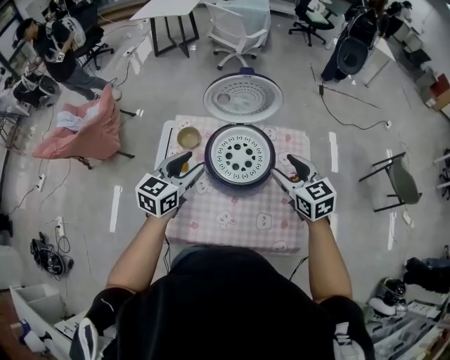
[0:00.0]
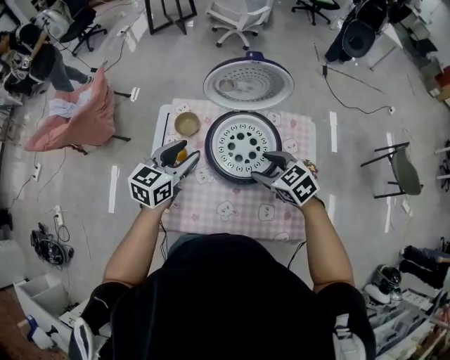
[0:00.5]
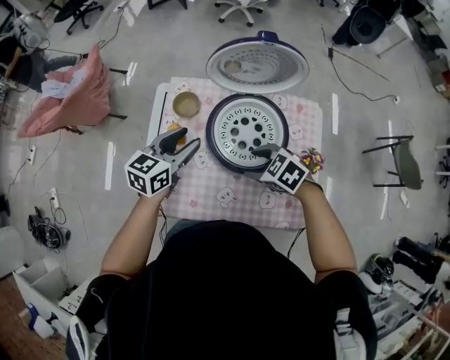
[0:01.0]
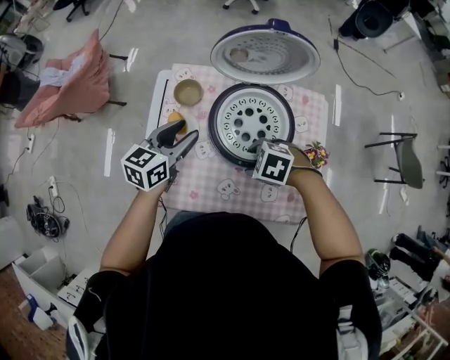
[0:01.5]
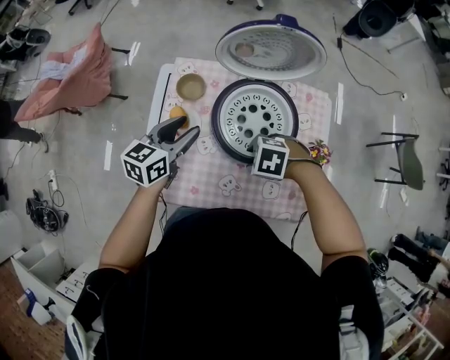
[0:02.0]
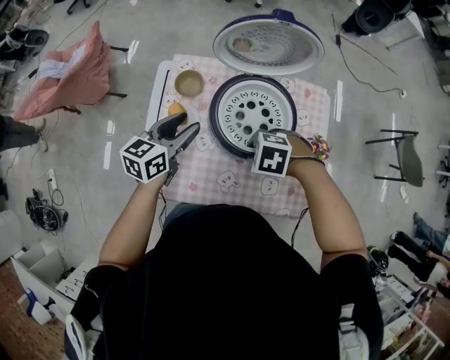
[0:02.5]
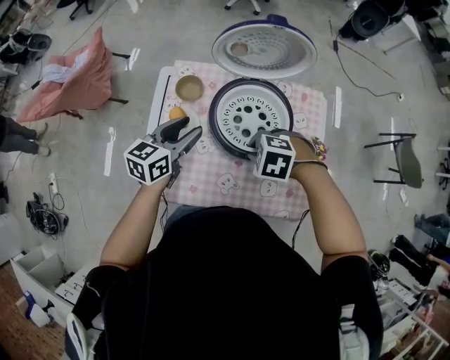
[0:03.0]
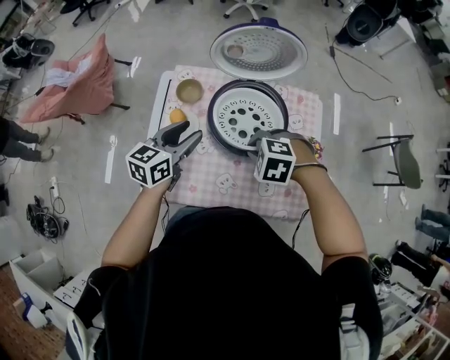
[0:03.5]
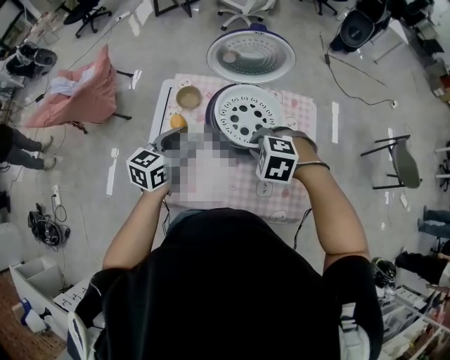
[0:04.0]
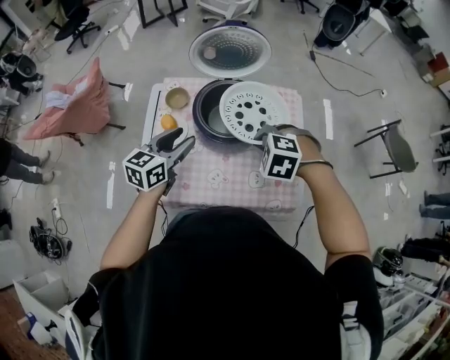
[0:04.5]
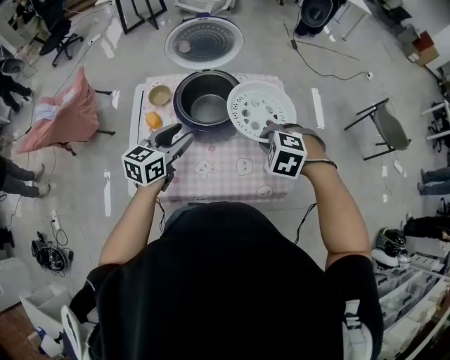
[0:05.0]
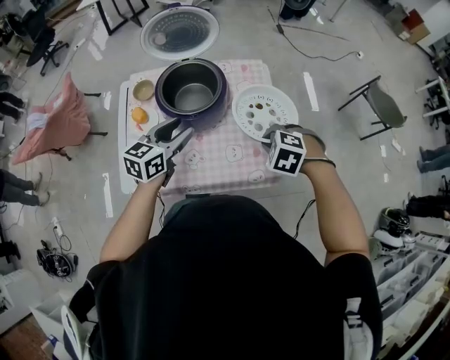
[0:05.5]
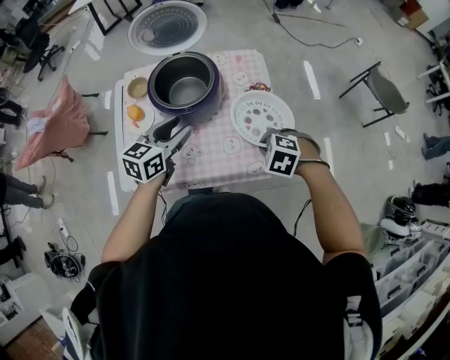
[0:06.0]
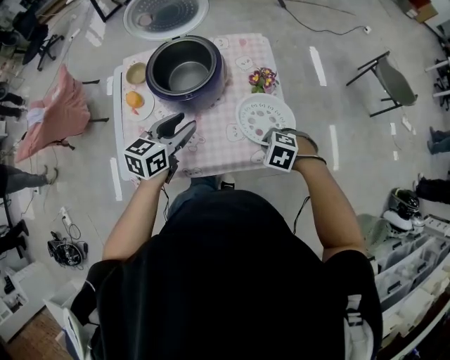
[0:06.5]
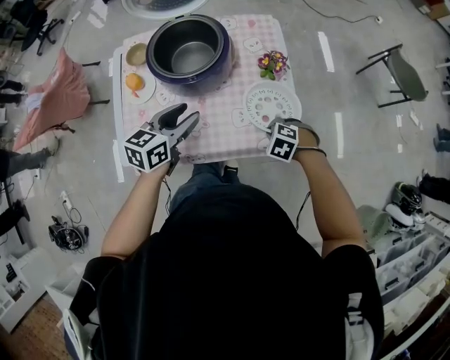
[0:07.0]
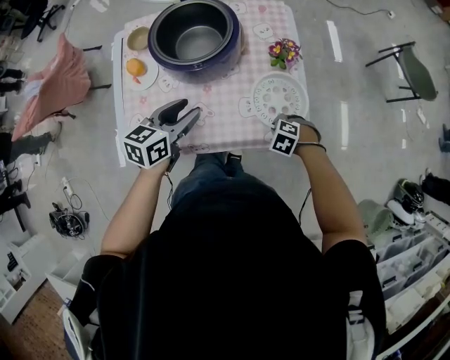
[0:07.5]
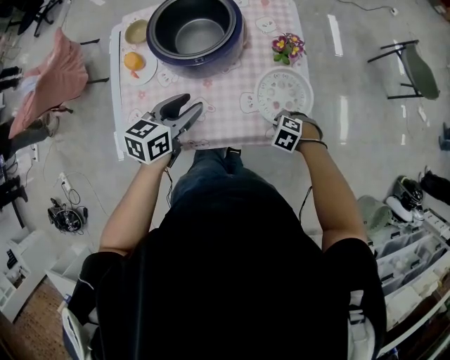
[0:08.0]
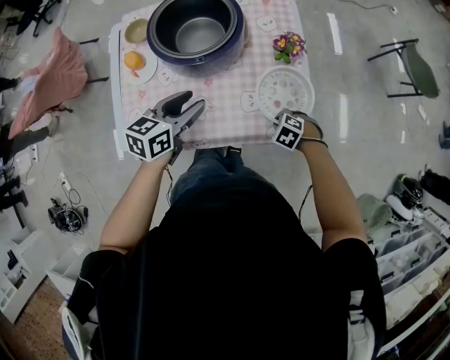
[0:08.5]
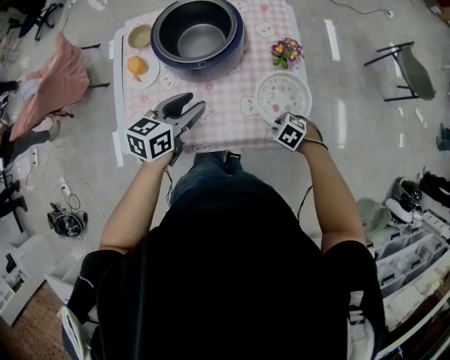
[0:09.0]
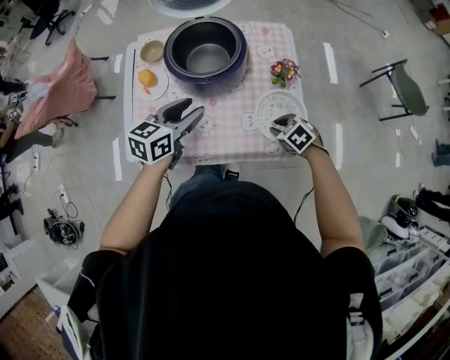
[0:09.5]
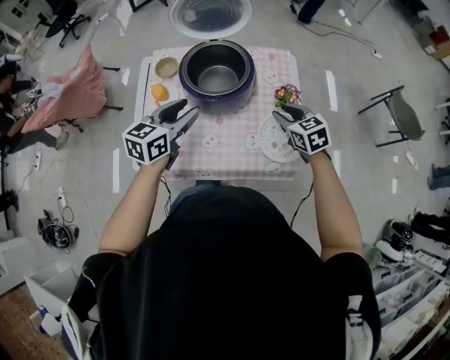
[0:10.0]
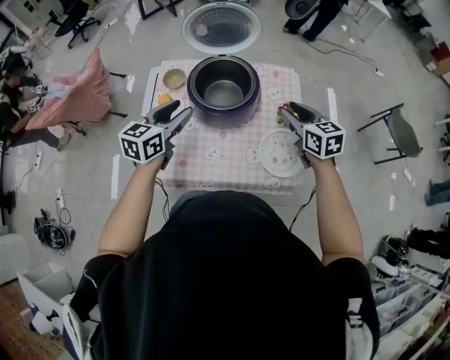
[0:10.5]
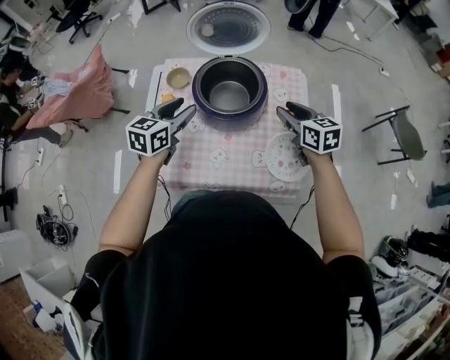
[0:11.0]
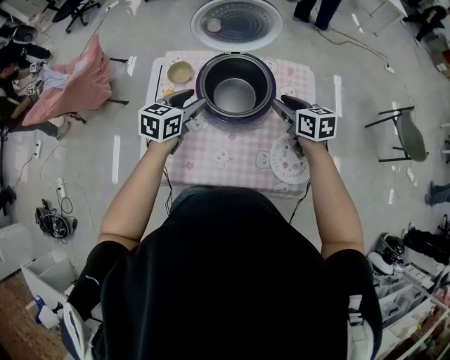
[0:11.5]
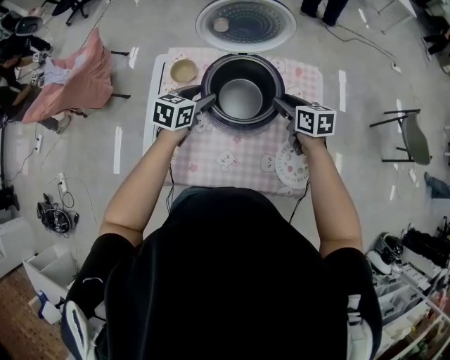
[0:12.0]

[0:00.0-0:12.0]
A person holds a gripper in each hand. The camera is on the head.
0:00.0 to 0:02.0: The right gripper goes about 20 cm downward, and tips its fingers downward by about 40 degrees. The left gripper moves downward, approximately 10 cm.
0:02.0 to 0:04.0: The left gripper shifts by some 10 cm, while the right gripper is displaced upward by approximately 10 cm, turns by about 30 degrees, and closes its fingers.
0:04.0 to 0:06.0: The right gripper moves about 30 cm, and rotates some 20 degrees, while the left gripper ends up approximately 20 cm from where it was.
0:06.0 to 0:08.0: The left gripper goes about 10 cm downward; the right gripper goes approximately 25 cm downward.
0:08.0 to 0:10.0: The left gripper travels upward by approximately 15 cm, while the right gripper shifts approximately 25 cm upward, and tilts its fingers roughly 40 degrees upward.
0:10.0 to 0:12.0: The left gripper heads forward and downward, covering about 20 cm. The right gripper moves forward and to the left, about 20 cm, and changes its angle by about 20 degrees.

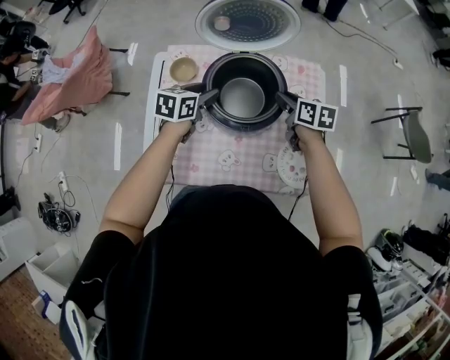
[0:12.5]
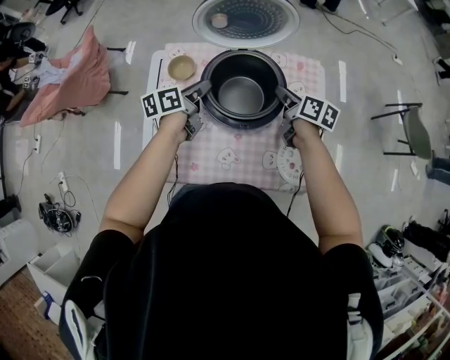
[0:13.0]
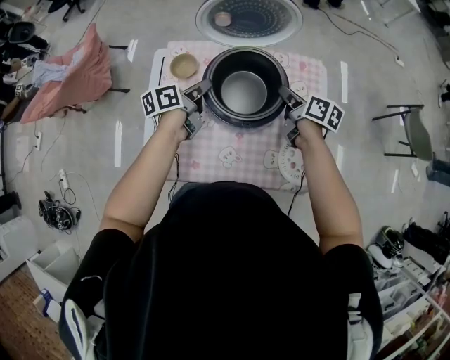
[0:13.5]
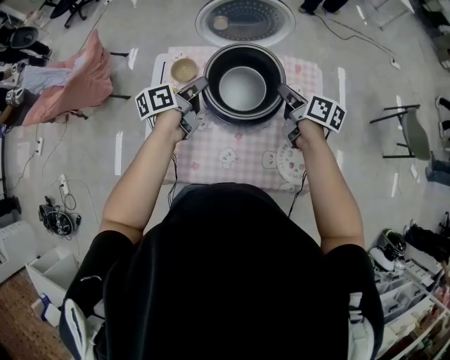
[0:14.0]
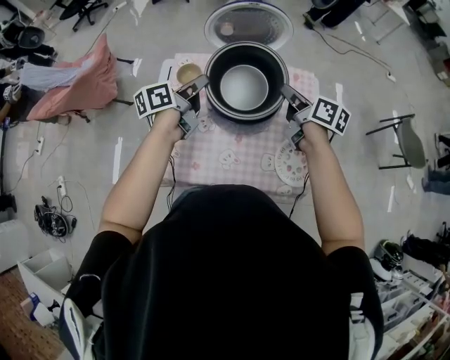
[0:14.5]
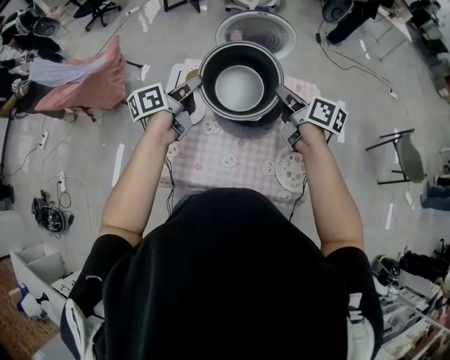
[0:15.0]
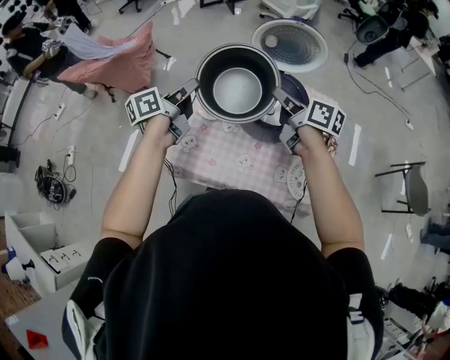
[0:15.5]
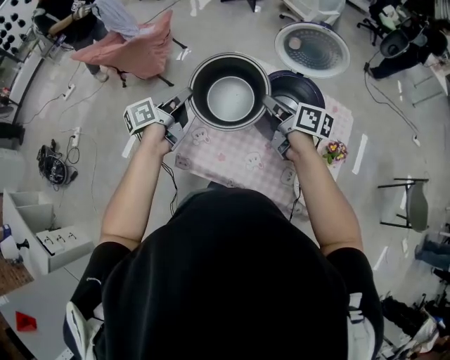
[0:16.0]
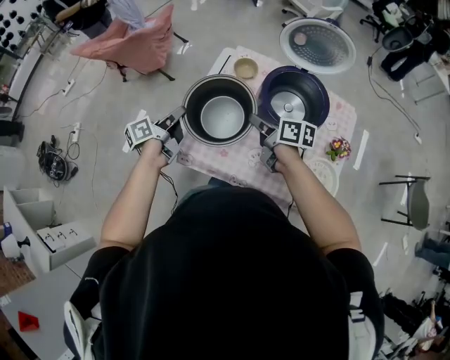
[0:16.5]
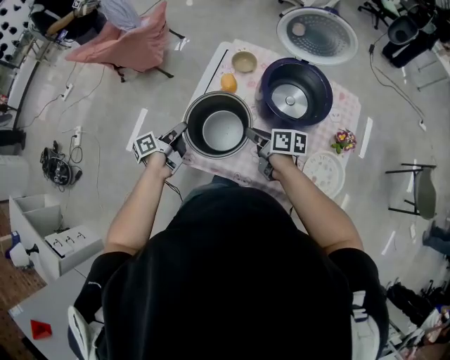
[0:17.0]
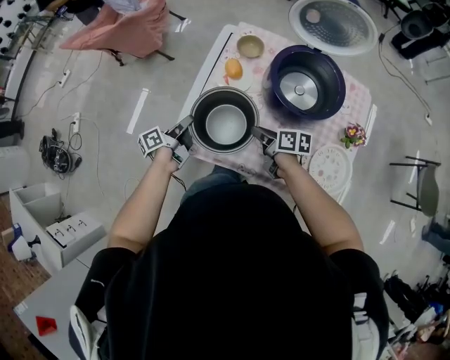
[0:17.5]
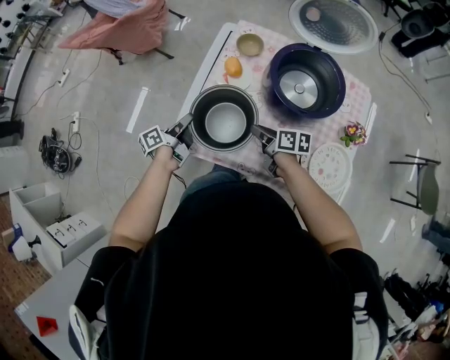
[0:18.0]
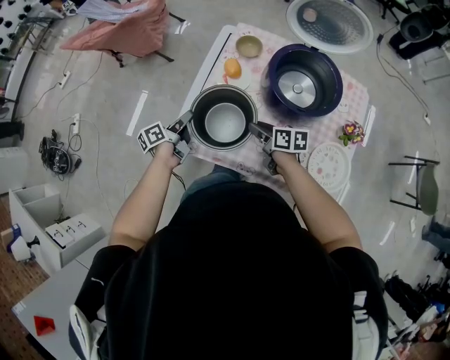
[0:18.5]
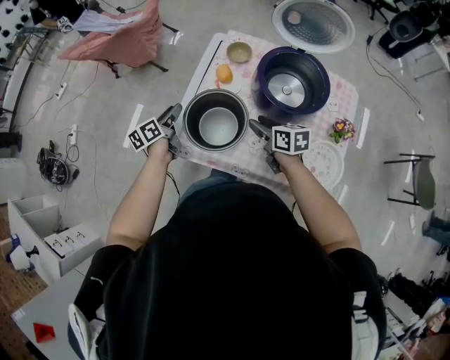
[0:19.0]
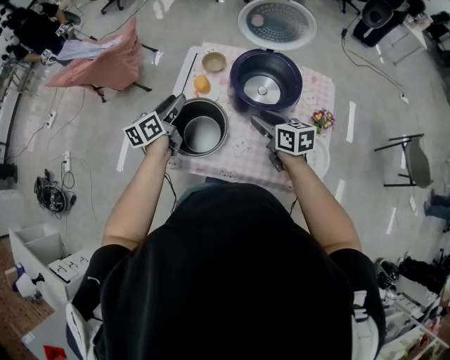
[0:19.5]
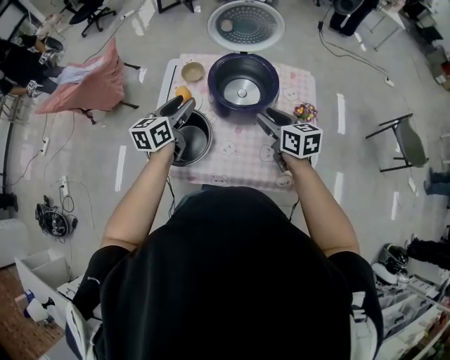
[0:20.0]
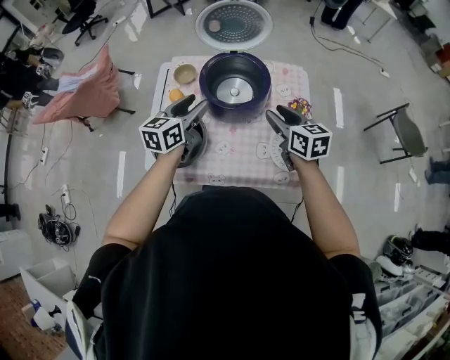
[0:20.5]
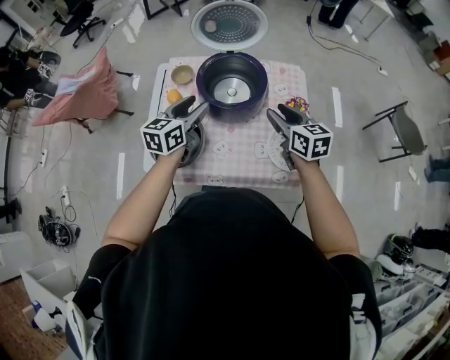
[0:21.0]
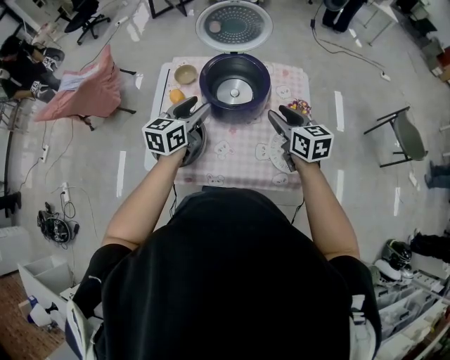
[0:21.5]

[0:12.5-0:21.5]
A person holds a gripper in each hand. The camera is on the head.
0:12.5 to 0:14.5: Both grippers travel together upward, some 10 cm. The right gripper rotates about 20 degrees, while the left gripper turns by some 40 degrees, and closes up.
0:14.5 to 0:17.0: The left gripper changes place by some 35 cm, and changes its angle by about 30 degrees. The right gripper moves about 30 cm, and swivels approximately 30 degrees.
0:17.0 to 0:19.5: The right gripper moves to the right and upward, roughly 15 cm, swivels some 30 degrees, and opens its fingers, while the left gripper is displaced upward and to the right by roughly 15 cm, changes its angle by about 40 degrees, and opens up.
0:19.5 to 0:21.5: The right gripper shifts approximately 15 cm to the right and upward; the left gripper travels to the right by approximately 20 cm, and turns by about 30 degrees.

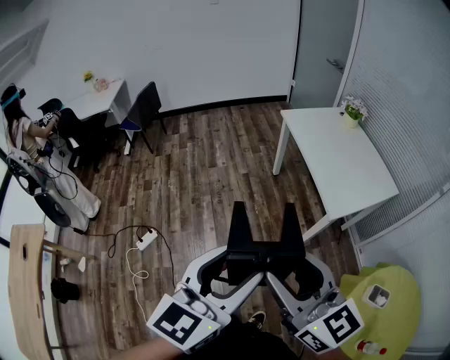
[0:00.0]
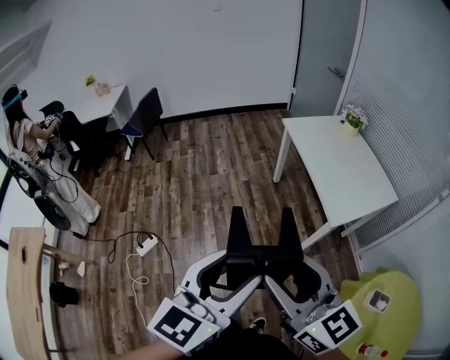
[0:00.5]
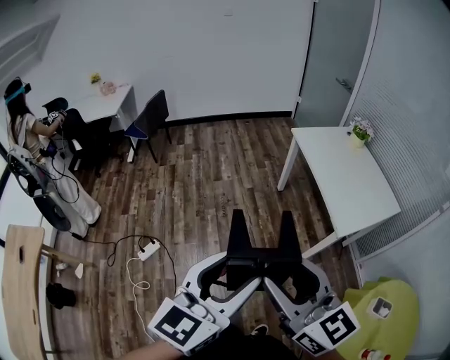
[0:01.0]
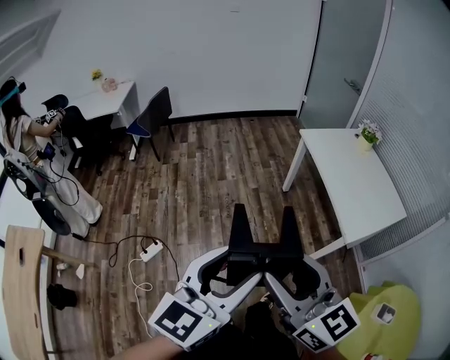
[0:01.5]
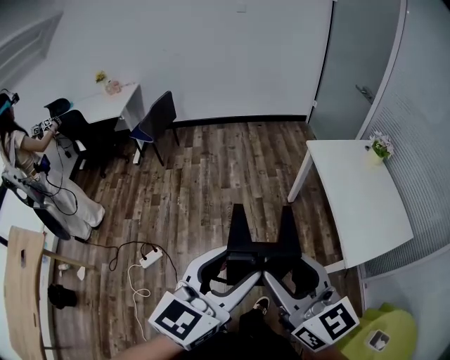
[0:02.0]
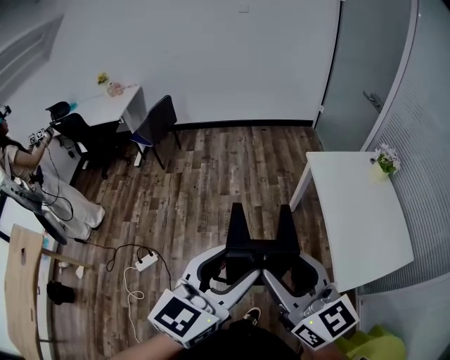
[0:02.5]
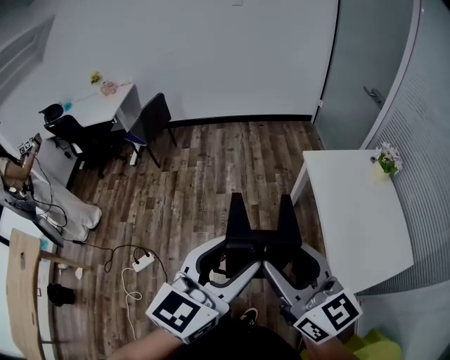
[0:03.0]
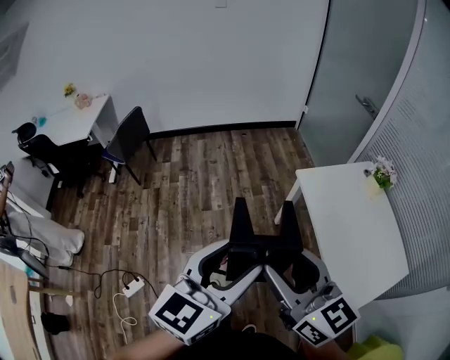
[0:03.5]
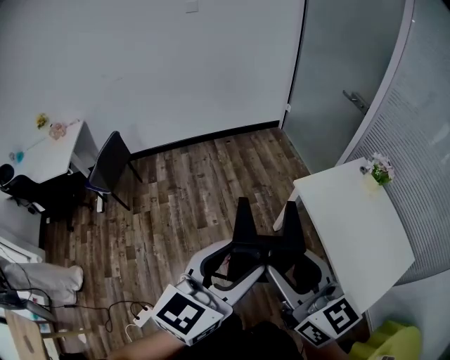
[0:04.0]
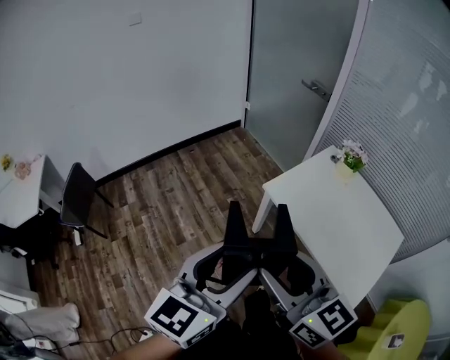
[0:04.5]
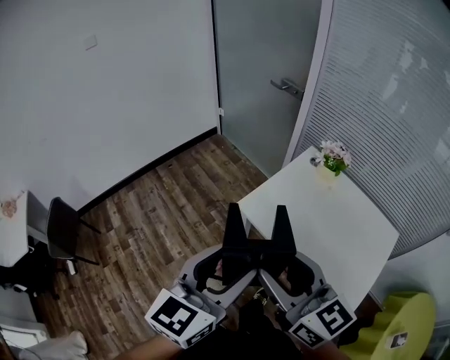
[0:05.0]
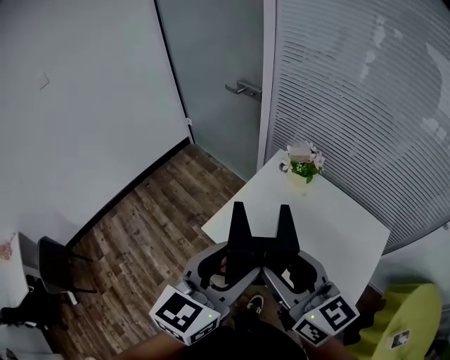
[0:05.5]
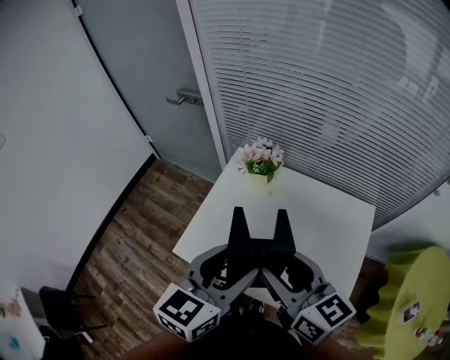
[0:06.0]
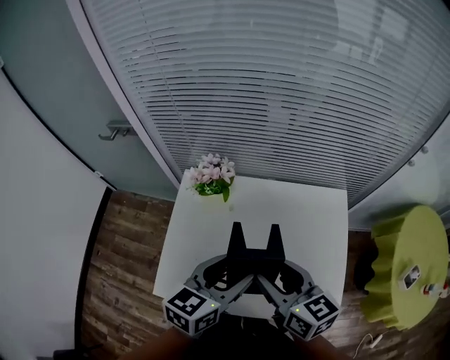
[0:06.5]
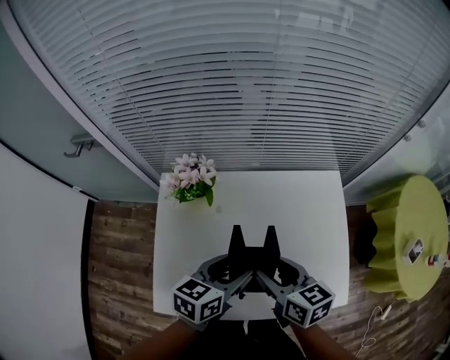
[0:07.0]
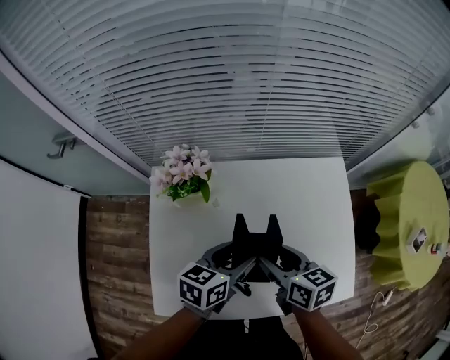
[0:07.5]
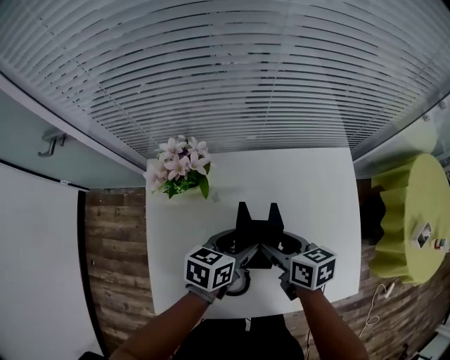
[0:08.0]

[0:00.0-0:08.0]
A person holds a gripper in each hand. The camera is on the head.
0:00.0 to 0:02.0: Both grippers move forward and to the left, approximately 20 cm.
0:02.0 to 0:04.0: The two grippers travel together, forward, some 40 cm.
0:04.0 to 0:06.0: The two grippers travel together, some 50 cm. The left gripper changes its angle by about 40 degrees, while the right gripper changes its angle by some 40 degrees.
0:06.0 to 0:08.0: Both grippers move downward, roughly 30 cm. The left gripper changes its angle by roughly 40 degrees, while the right gripper swivels approximately 40 degrees.
